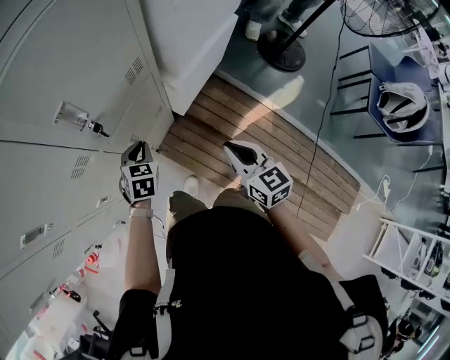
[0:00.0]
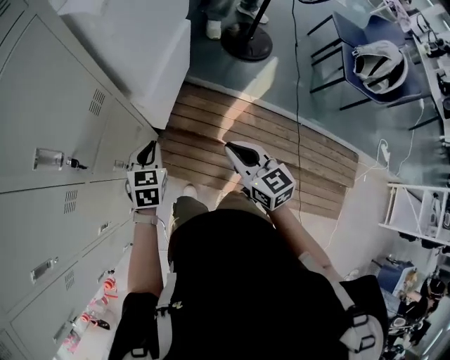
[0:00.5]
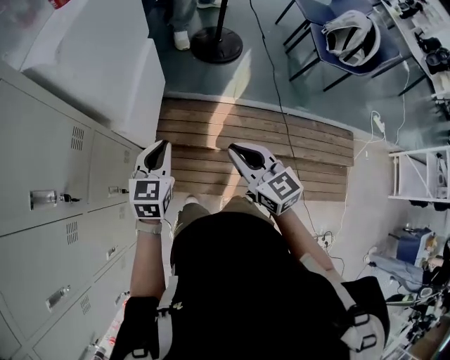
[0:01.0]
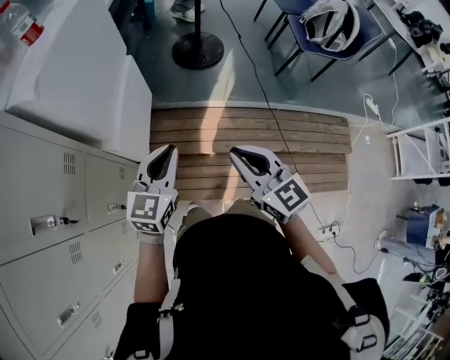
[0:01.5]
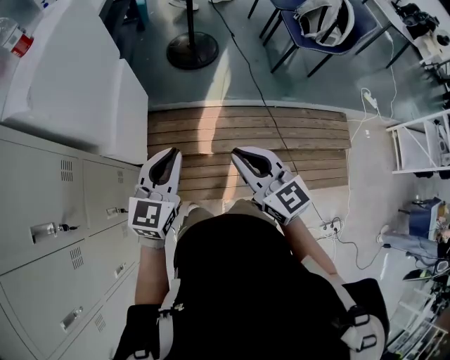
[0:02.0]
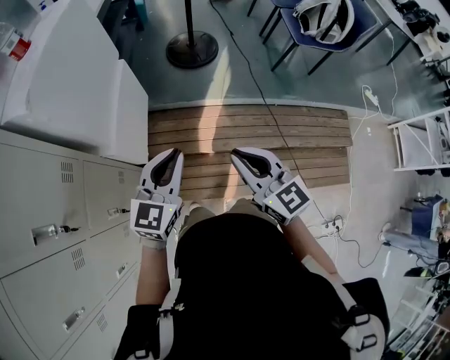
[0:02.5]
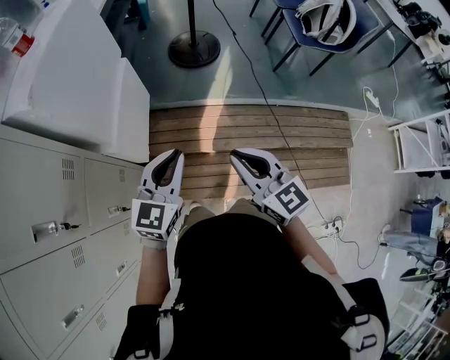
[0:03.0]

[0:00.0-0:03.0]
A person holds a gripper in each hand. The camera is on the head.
0:00.0 to 0:01.5: The left gripper shifts by roughly 40 cm, and angles its fingers upward, by about 30 degrees, while the right gripper changes place by about 25 cm, and changes its angle by some 30 degrees.
0:01.5 to 0:03.0: The grippers move only a little.

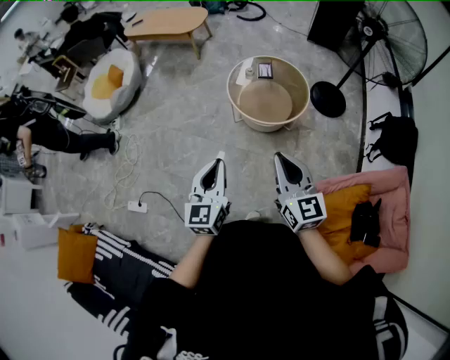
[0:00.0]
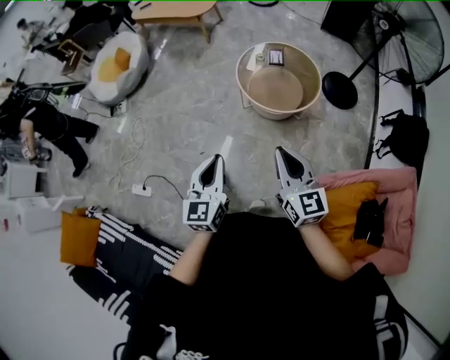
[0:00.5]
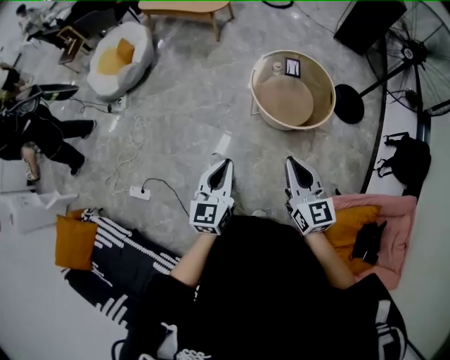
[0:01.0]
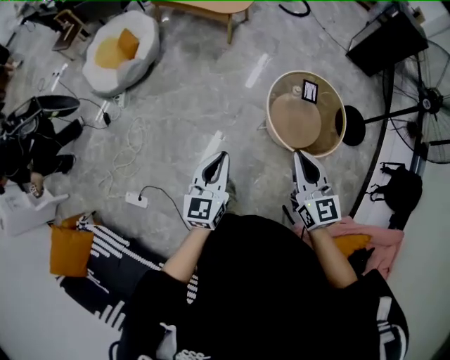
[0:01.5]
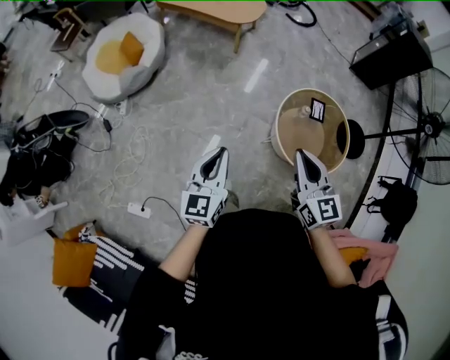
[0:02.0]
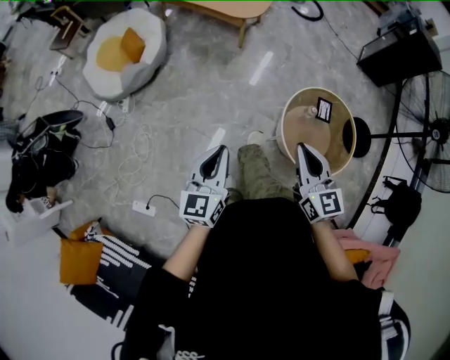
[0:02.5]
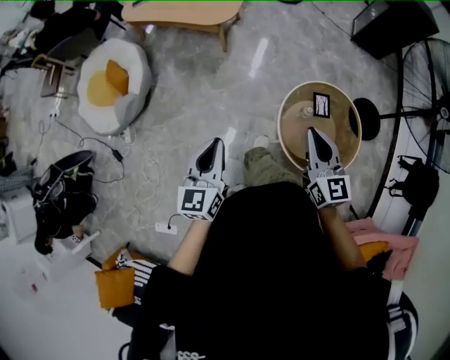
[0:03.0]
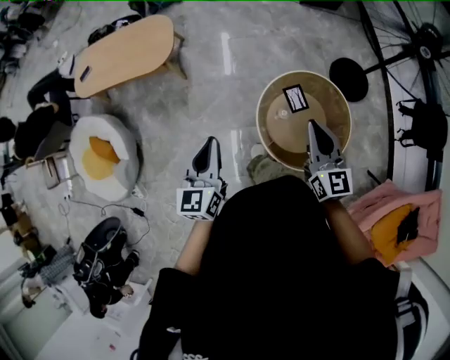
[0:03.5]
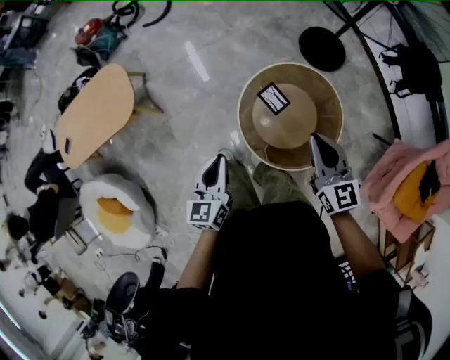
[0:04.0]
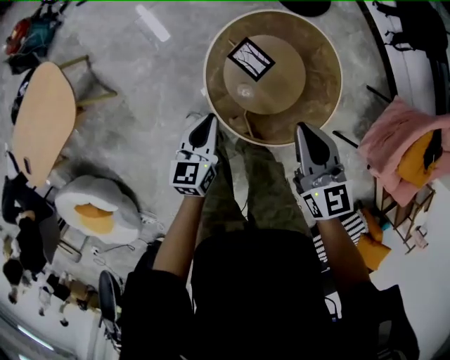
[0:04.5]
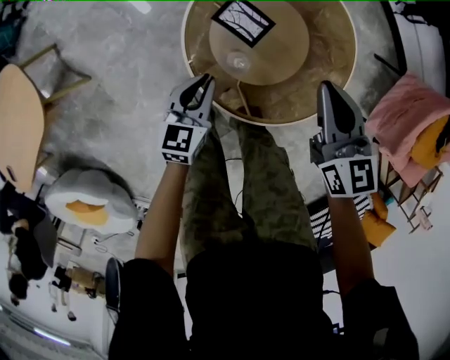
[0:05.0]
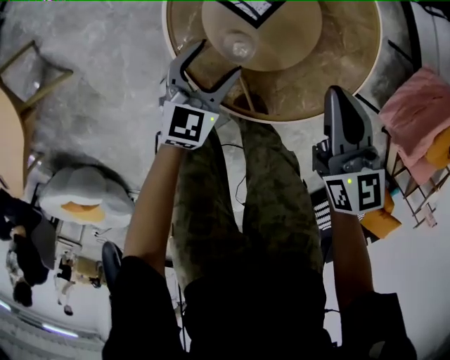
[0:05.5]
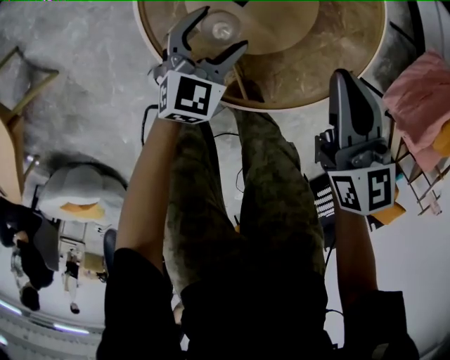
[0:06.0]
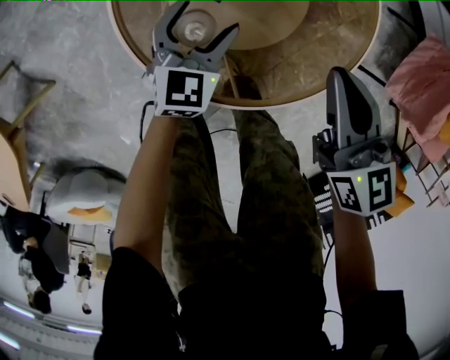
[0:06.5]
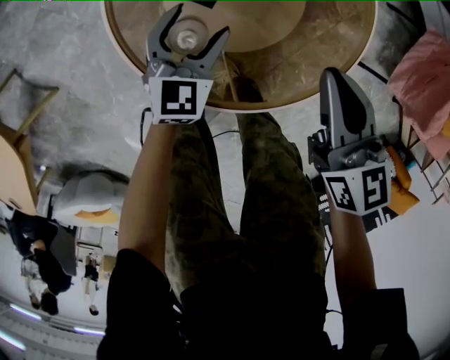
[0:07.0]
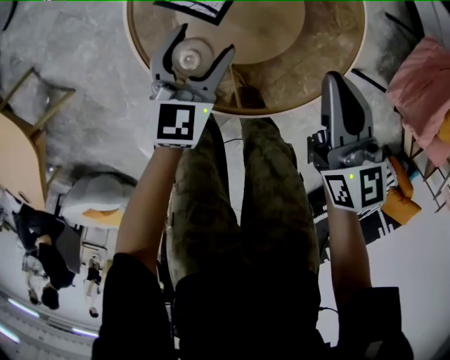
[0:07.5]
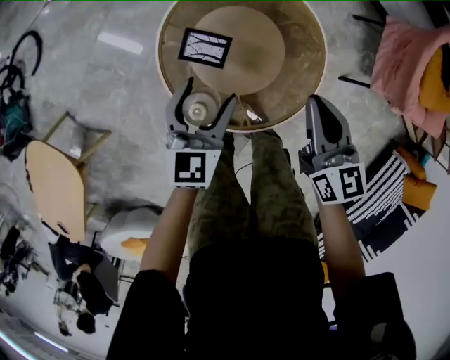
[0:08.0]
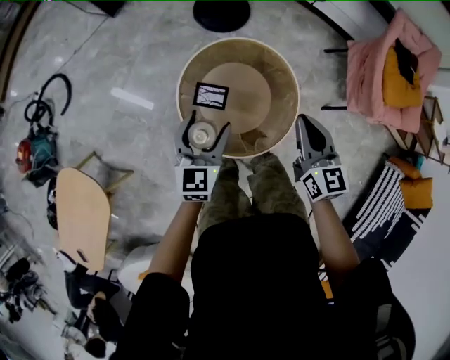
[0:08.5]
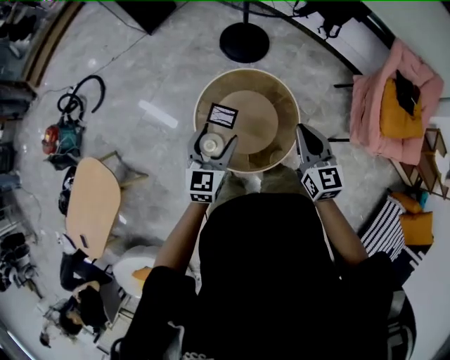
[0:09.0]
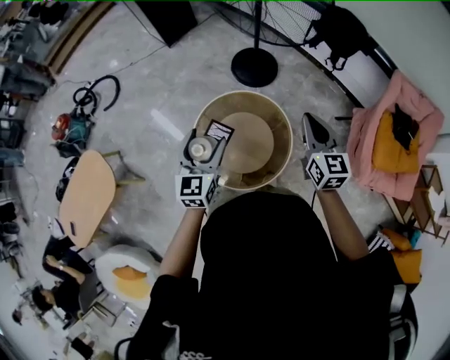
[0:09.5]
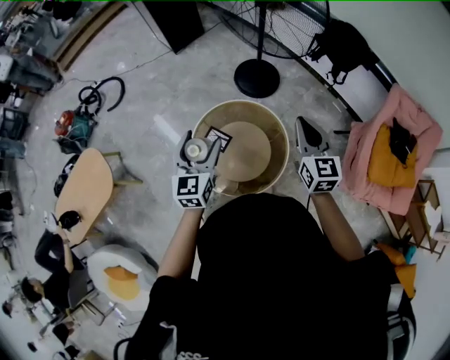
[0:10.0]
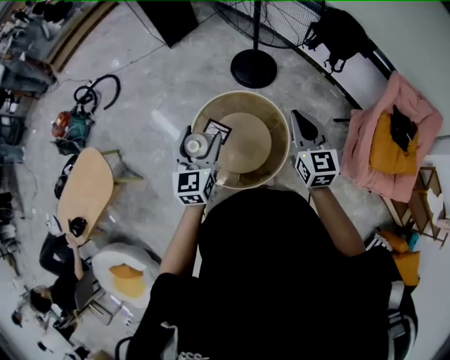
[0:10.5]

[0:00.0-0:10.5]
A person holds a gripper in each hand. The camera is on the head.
0:00.0 to 0:02.0: Both grippers are carried forward and to the left, approximately 60 cm.
0:02.0 to 0:04.0: The two grippers travel together, about 60 cm. The left gripper changes its angle by roughly 50 degrees; the right gripper changes its angle by some 50 degrees.
0:04.0 to 0:06.5: Both grippers move downward, some 50 cm. The left gripper turns by about 50 degrees, and opens up. The right gripper swivels approximately 30 degrees.
0:06.5 to 0:08.5: Both grippers move upward, about 40 cm. The right gripper rotates some 20 degrees.
0:08.5 to 0:10.5: The left gripper moves upward, some 20 cm, and rotates roughly 20 degrees, while the right gripper shifts some 20 cm upward and to the right.

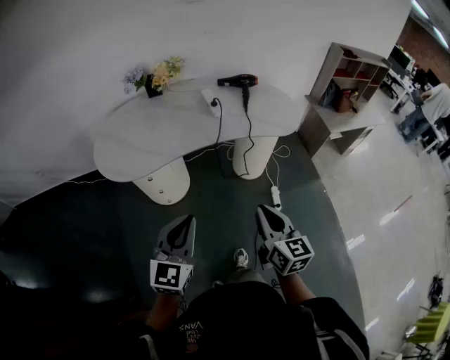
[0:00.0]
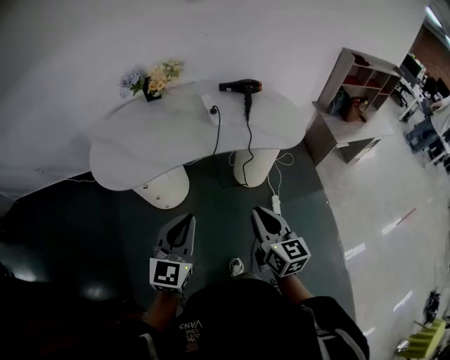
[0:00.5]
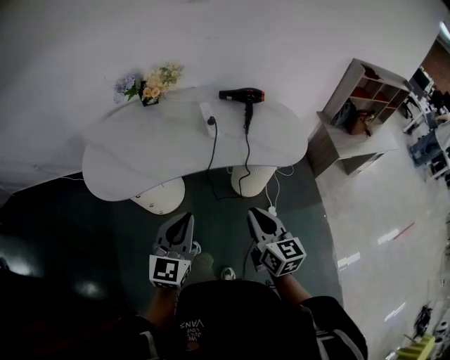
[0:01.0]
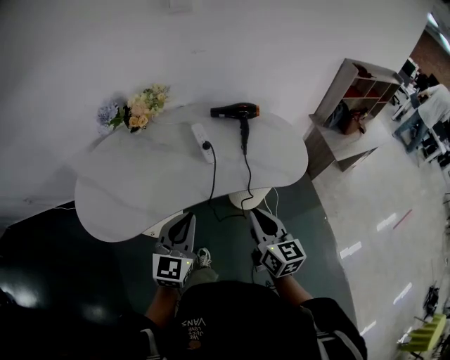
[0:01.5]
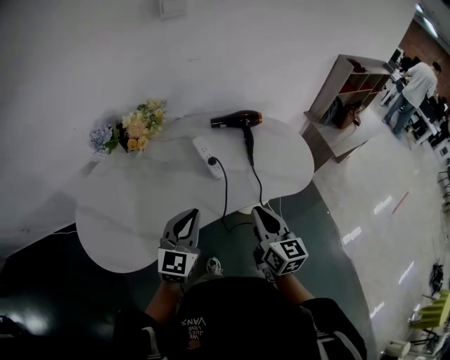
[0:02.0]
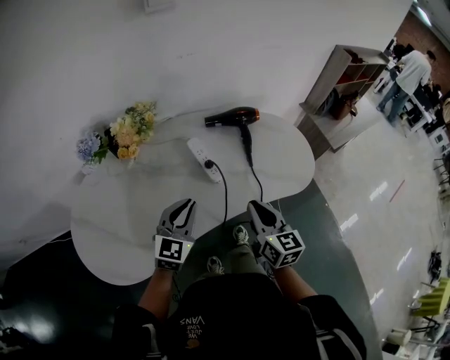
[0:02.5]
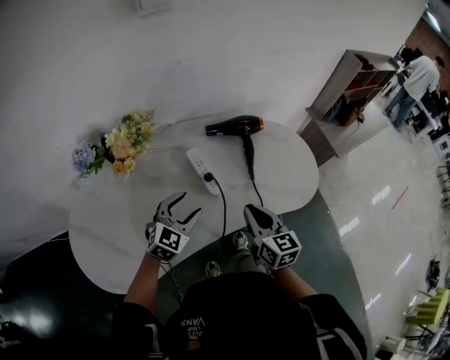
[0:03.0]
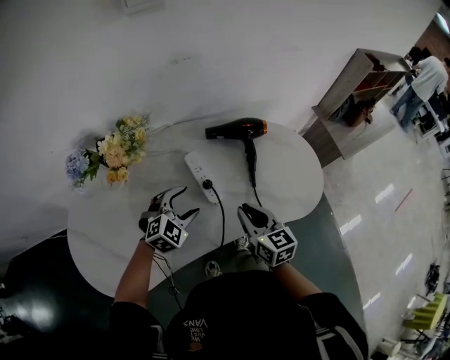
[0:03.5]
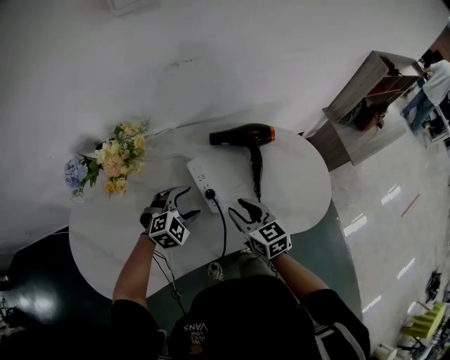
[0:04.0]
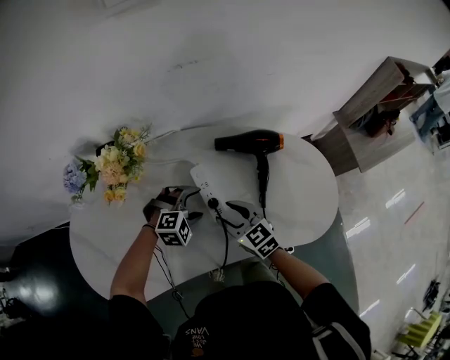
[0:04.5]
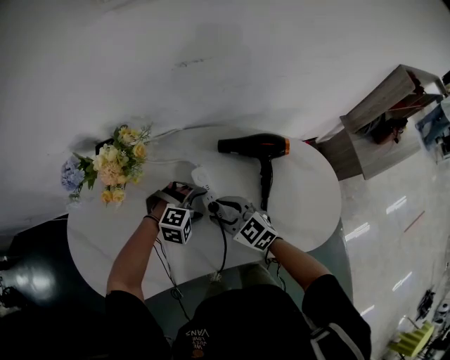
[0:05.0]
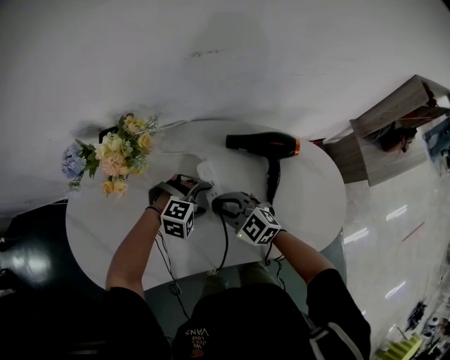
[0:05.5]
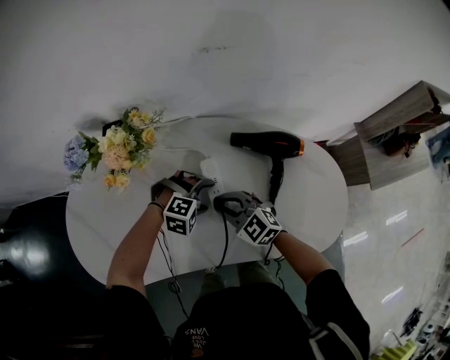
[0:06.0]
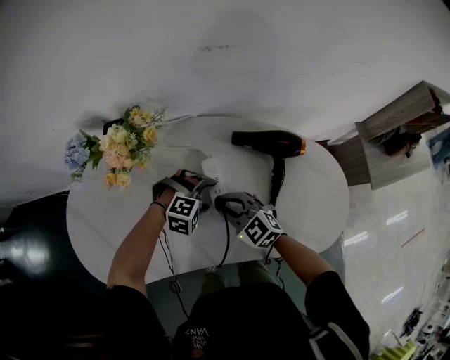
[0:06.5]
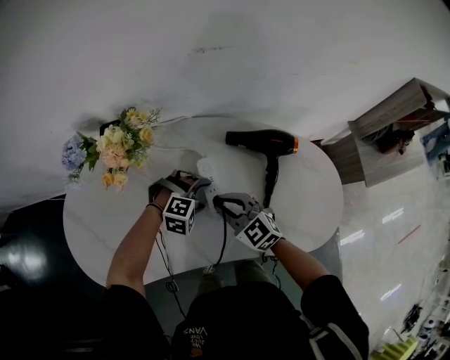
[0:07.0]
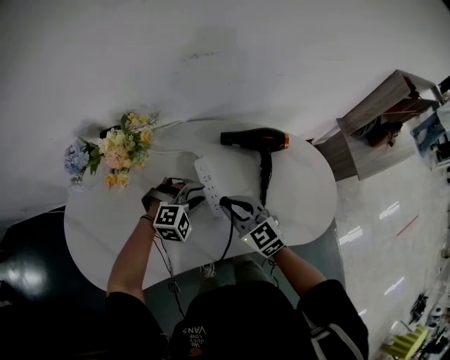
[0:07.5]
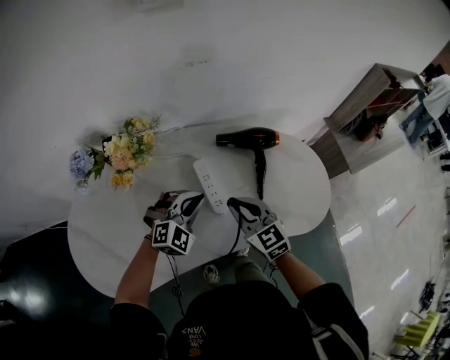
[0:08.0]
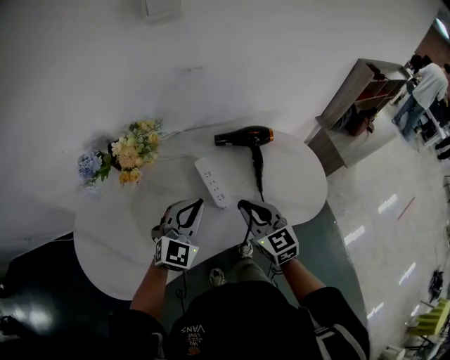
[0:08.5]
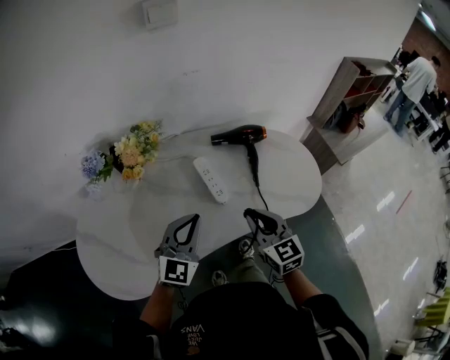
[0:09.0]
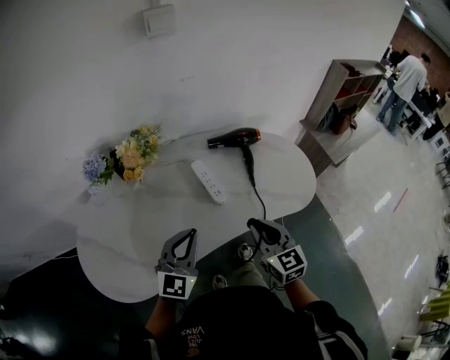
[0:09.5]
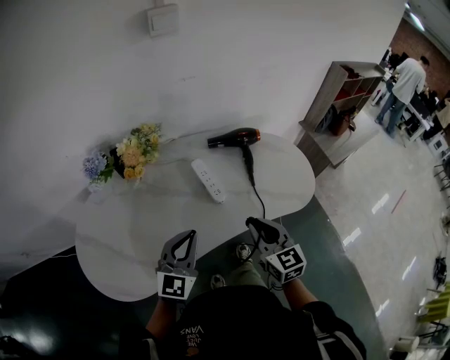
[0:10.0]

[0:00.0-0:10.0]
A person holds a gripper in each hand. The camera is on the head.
0:00.0 to 0:02.0: Both grippers move forward, roughly 40 cm.
0:02.0 to 0:04.0: Both grippers move forward and downward, some 30 cm. The left gripper tilts its fingers roughly 40 degrees downward, and opens. Meanwhile the right gripper turns by about 30 degrees, and opens.
0:04.0 to 0:06.0: The right gripper ends up some 10 cm from where it was, and rotates about 50 degrees. The left gripper travels downward by roughly 5 cm, and swivels roughly 30 degrees.
0:06.0 to 0:08.0: The right gripper is displaced upward by approximately 10 cm, and rotates approximately 30 degrees, while the left gripper moves upward, approximately 15 cm, tilts its fingers roughly 30 degrees upward, and closes up.
0:08.0 to 0:10.0: The left gripper heads backward and upward, covering roughly 25 cm, and turns by roughly 40 degrees, while the right gripper shifts some 20 cm backward, and rotates roughly 20 degrees.

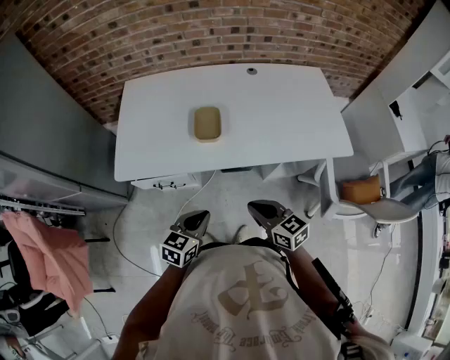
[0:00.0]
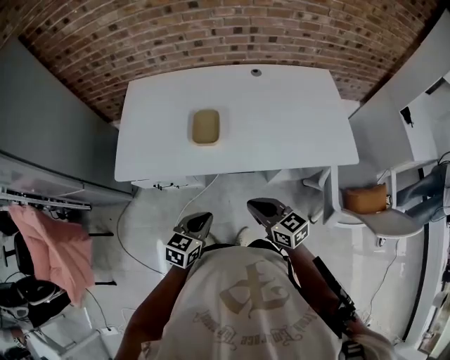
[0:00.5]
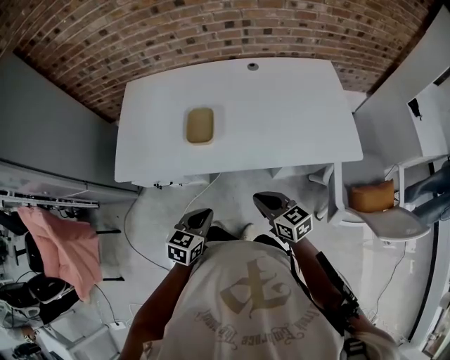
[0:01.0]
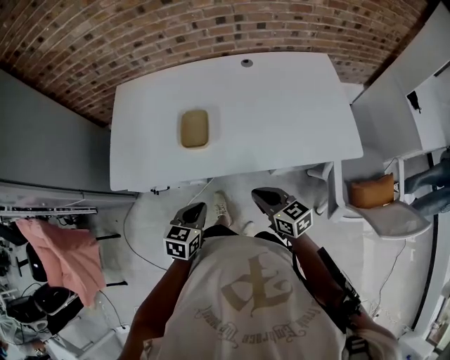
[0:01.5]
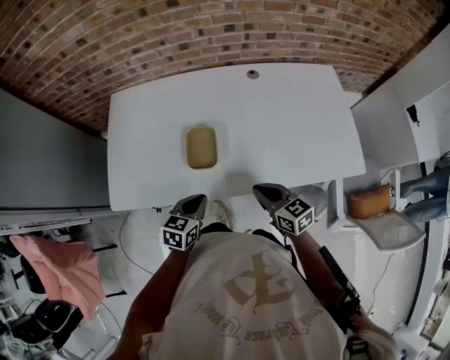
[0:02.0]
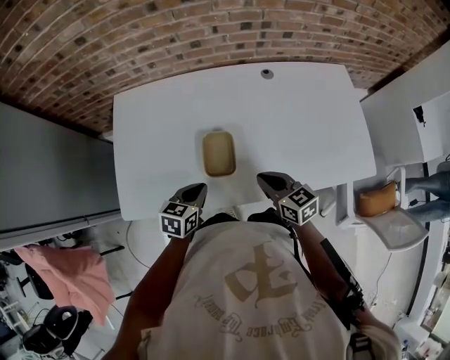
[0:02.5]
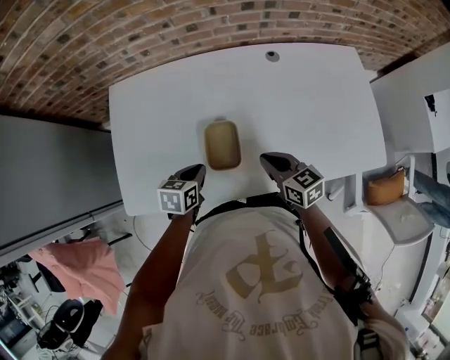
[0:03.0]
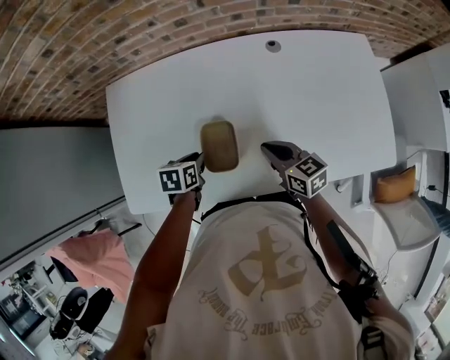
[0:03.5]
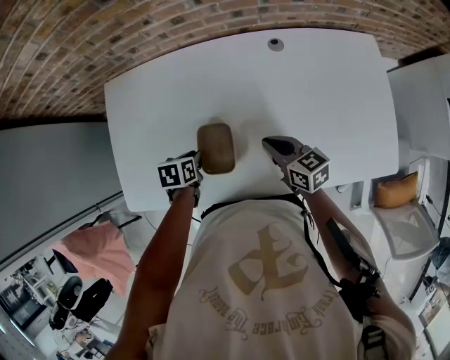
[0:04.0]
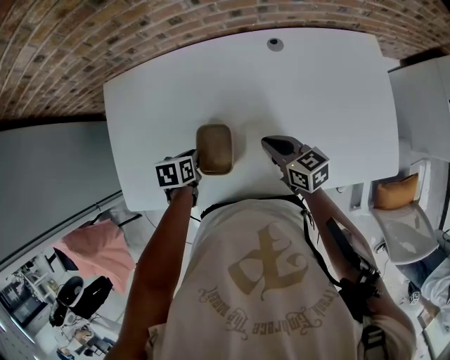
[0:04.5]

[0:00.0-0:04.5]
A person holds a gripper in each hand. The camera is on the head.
0:00.0 to 0:02.0: Both grippers travel together forward, some 20 cm.
0:02.0 to 0:04.5: The right gripper heads forward, covering approximately 20 cm. Meanwhile the left gripper moves forward and downward, some 20 cm, and rotates approximately 30 degrees.
